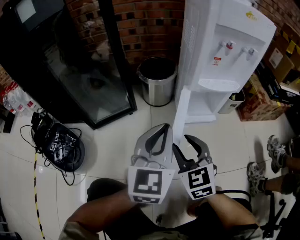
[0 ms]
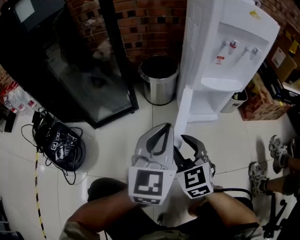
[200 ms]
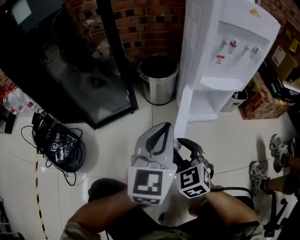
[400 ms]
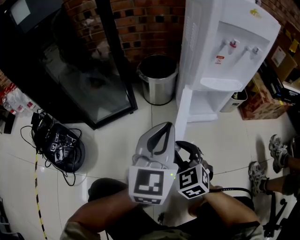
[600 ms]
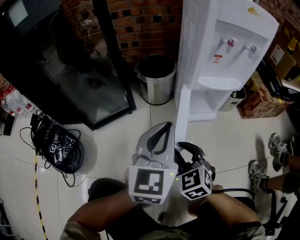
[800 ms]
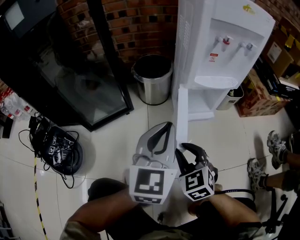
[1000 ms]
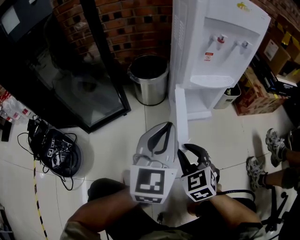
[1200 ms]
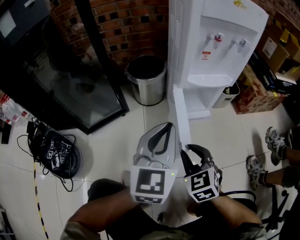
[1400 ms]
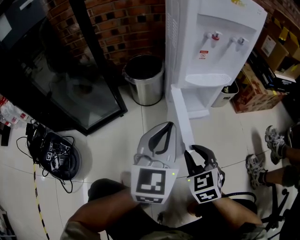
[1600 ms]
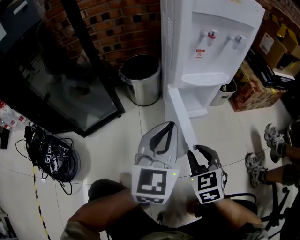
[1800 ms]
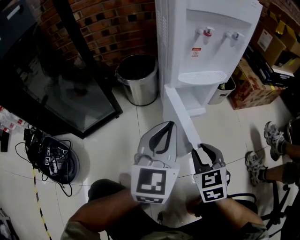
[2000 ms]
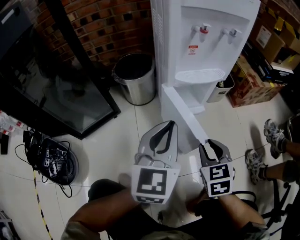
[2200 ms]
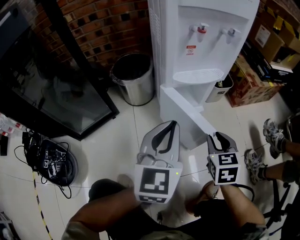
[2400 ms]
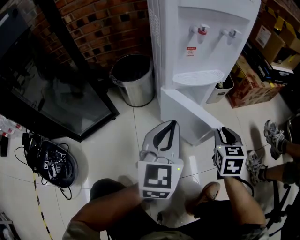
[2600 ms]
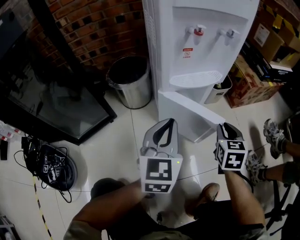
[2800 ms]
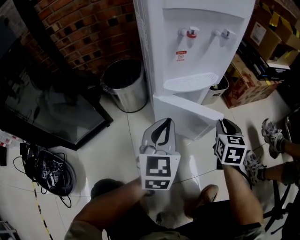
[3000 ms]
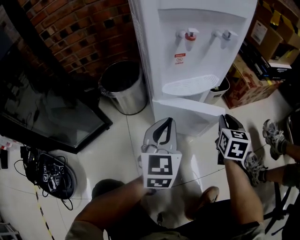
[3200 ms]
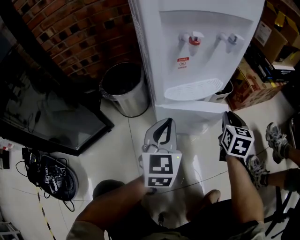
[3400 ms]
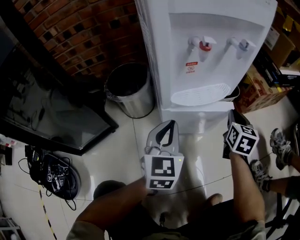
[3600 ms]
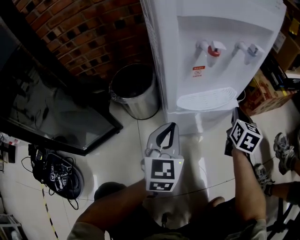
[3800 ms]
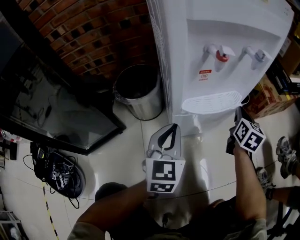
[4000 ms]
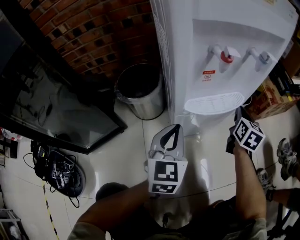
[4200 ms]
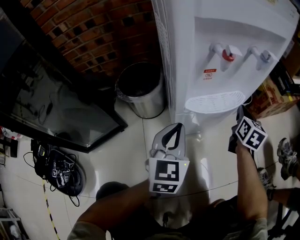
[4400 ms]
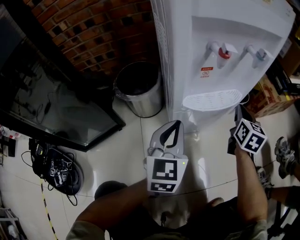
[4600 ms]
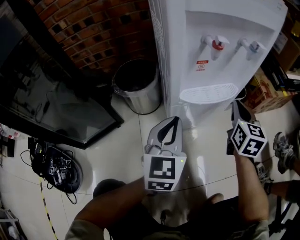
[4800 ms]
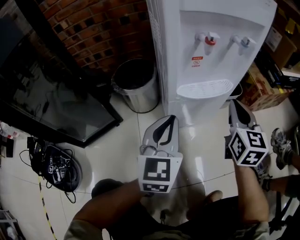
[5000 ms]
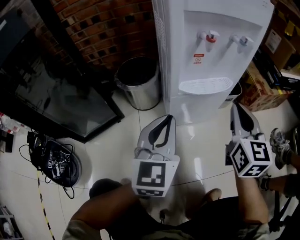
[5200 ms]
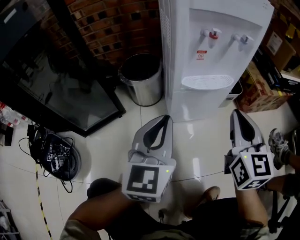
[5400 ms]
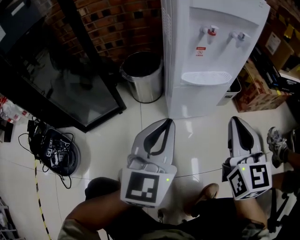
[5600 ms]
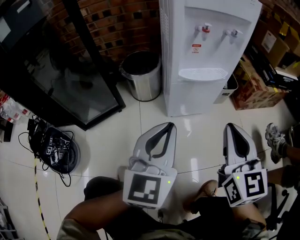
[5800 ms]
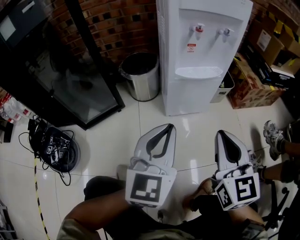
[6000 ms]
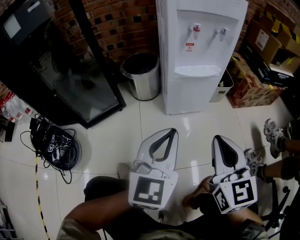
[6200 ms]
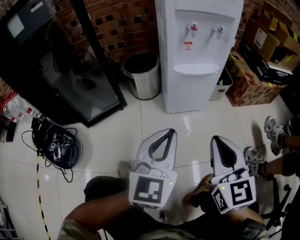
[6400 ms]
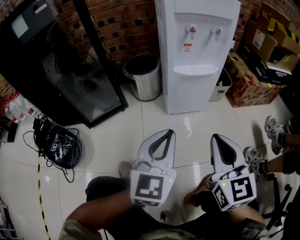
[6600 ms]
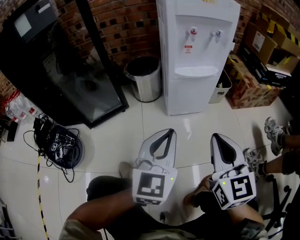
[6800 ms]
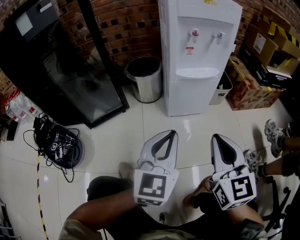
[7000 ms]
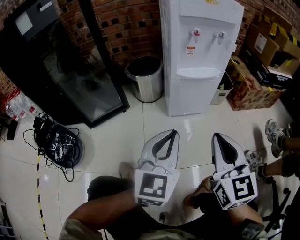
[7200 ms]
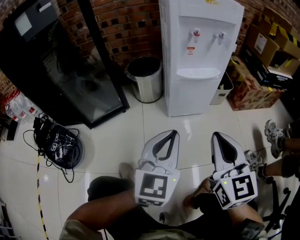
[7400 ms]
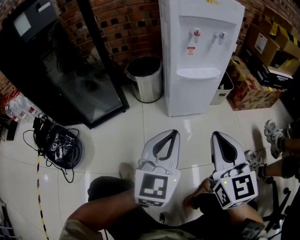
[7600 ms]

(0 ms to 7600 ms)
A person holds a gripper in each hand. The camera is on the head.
0 ms - 1600 ms: The two grippers go some 5 cm to the right.
1600 ms - 3000 ms: The right gripper shifts some 25 cm to the right and forward, and changes its angle by about 40 degrees; the left gripper shifts about 15 cm forward, downward and to the right.
3000 ms - 4600 ms: The left gripper goes some 5 cm forward. Meanwhile the right gripper is displaced forward by approximately 15 cm.
4600 ms - 6000 ms: The left gripper goes about 25 cm backward and upward; the right gripper is displaced backward and upward by about 35 cm, and changes its angle by about 30 degrees.
6000 ms - 7600 ms: The grippers move only a little.

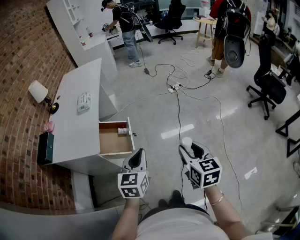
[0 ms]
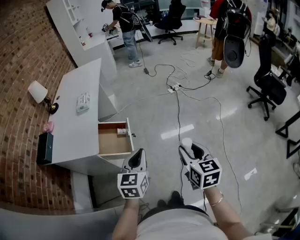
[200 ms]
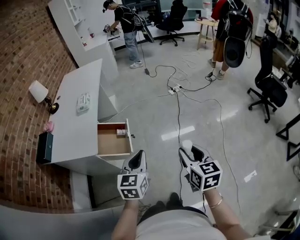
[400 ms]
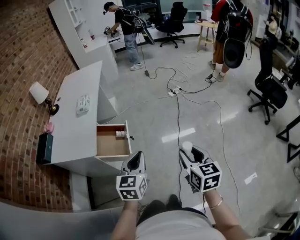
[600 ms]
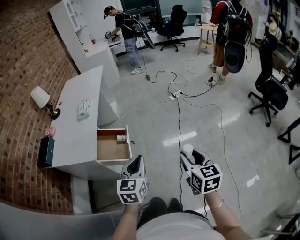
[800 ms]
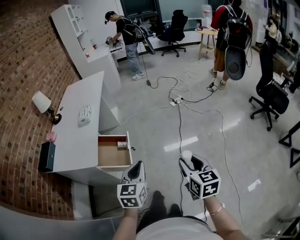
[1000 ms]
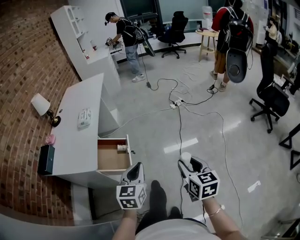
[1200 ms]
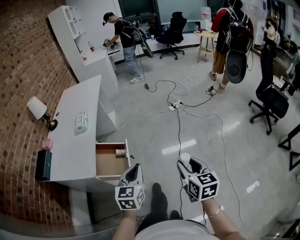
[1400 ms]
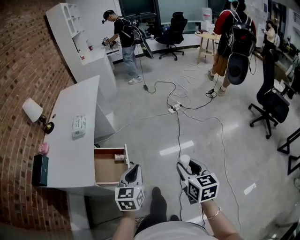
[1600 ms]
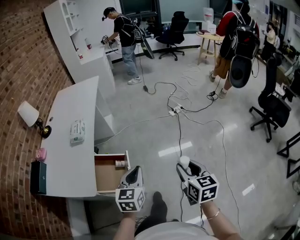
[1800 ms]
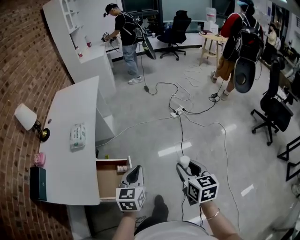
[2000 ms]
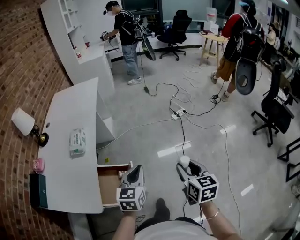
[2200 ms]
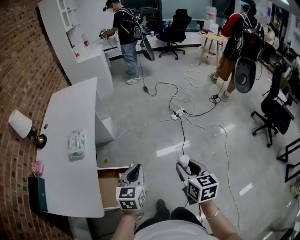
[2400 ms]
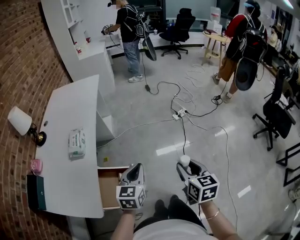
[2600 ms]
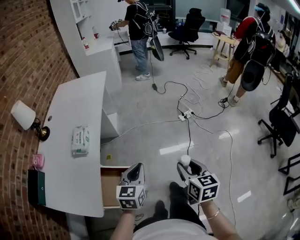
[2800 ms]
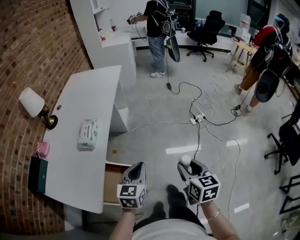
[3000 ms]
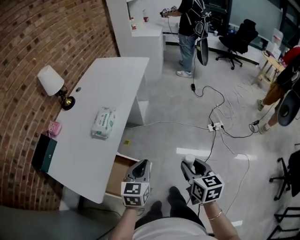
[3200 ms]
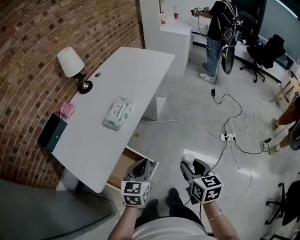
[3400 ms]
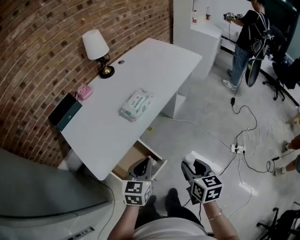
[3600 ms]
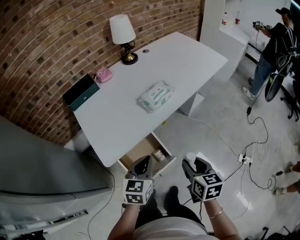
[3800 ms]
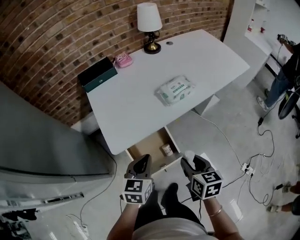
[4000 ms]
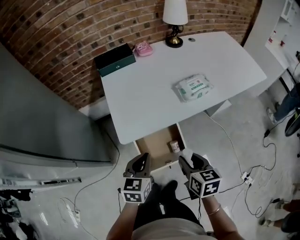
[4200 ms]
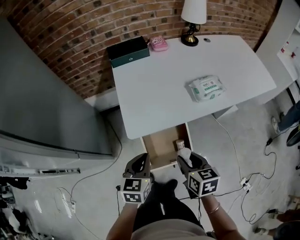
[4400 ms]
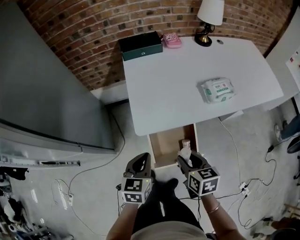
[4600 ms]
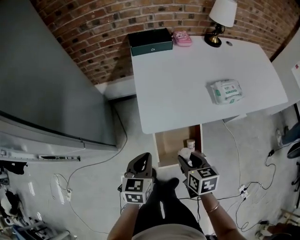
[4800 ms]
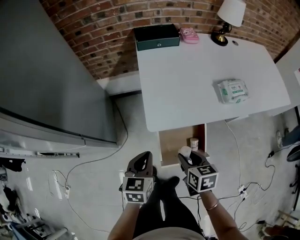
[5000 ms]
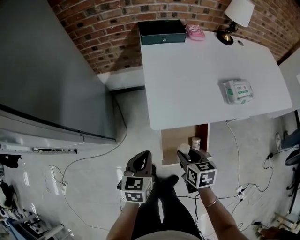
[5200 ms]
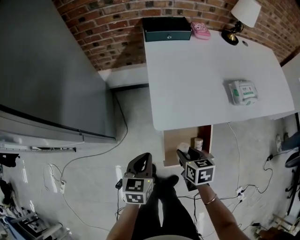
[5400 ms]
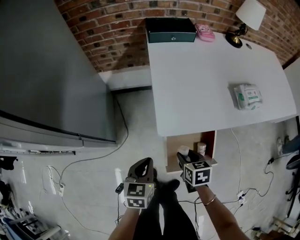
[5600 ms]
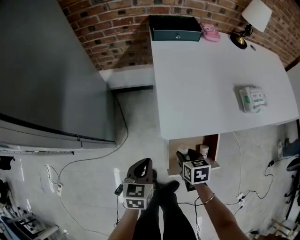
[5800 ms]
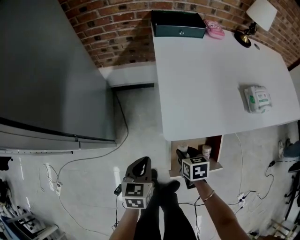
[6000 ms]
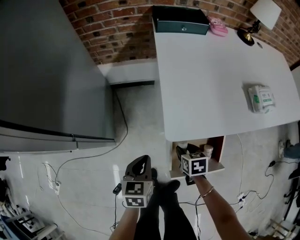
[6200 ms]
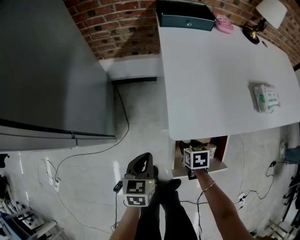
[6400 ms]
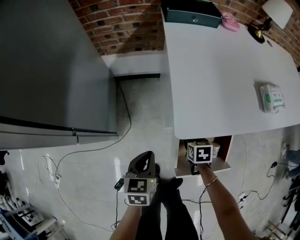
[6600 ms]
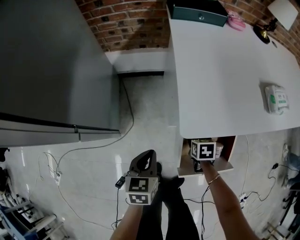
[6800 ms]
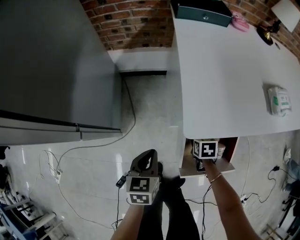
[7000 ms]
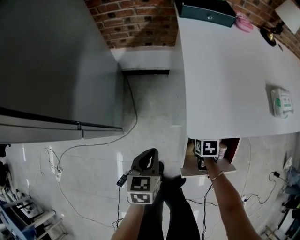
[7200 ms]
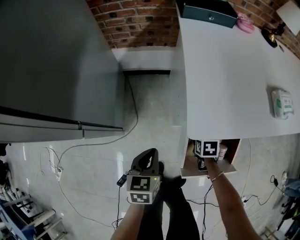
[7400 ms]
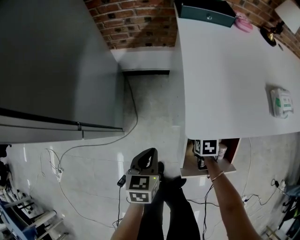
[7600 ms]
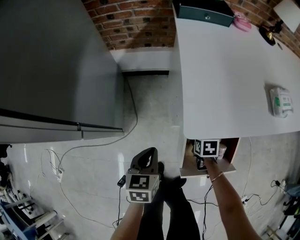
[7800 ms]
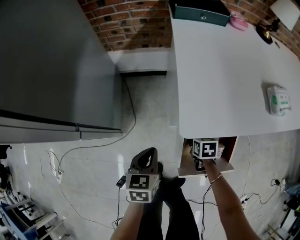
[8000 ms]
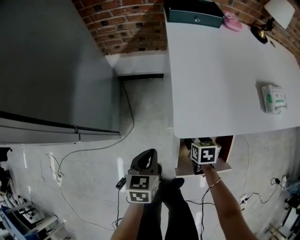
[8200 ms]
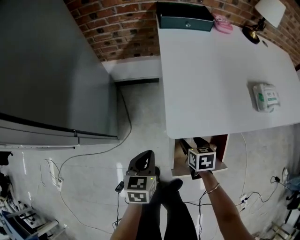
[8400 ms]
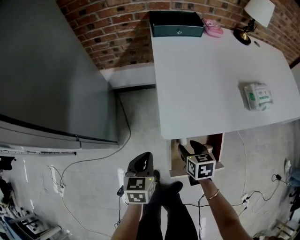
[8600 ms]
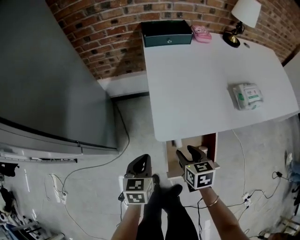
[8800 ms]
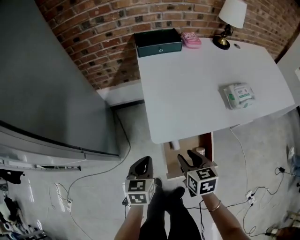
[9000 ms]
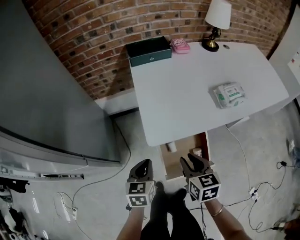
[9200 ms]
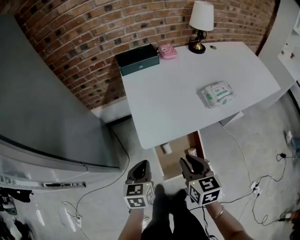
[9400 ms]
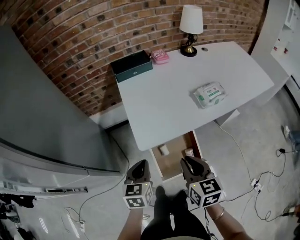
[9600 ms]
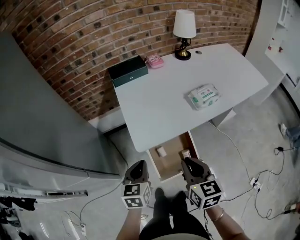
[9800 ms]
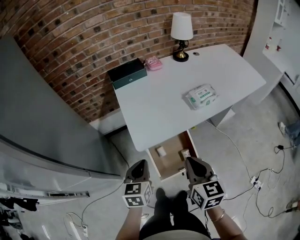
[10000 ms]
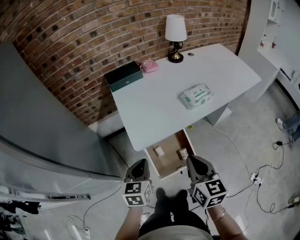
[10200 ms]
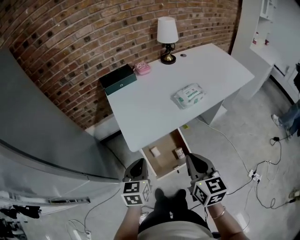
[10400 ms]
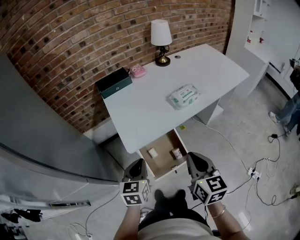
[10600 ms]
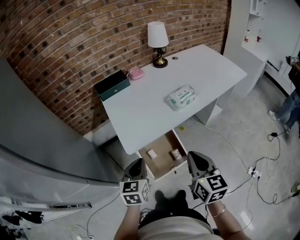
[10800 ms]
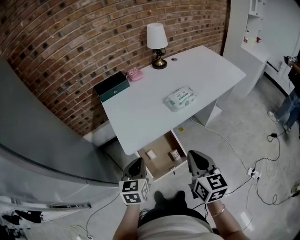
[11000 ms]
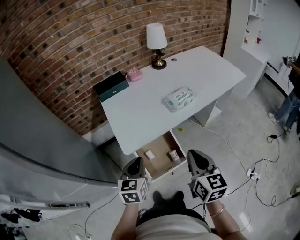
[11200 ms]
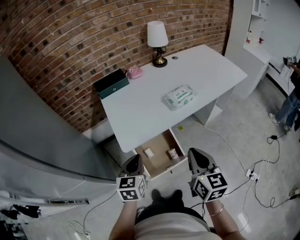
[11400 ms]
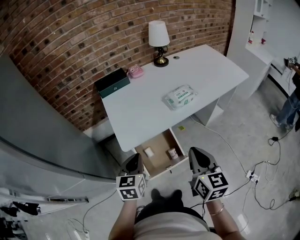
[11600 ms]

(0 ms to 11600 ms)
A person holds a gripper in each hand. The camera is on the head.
0 ms - 1400 ms: The grippers both shift forward by roughly 10 cm.
1400 ms - 2800 ms: The grippers both shift forward by roughly 35 cm.
2800 ms - 4400 ms: The left gripper ends up roughly 30 cm from where it was, and turns by roughly 80 degrees, while the right gripper changes place by roughly 35 cm, and turns by about 80 degrees.
4400 ms - 5800 ms: The left gripper heads downward and to the left, covering approximately 25 cm. The right gripper goes some 30 cm downward, to the left and forward.
5800 ms - 7200 ms: The left gripper travels downward by some 10 cm. Meanwhile the right gripper goes about 15 cm downward and forward.
7200 ms - 8800 ms: The left gripper travels upward and to the right by roughly 10 cm. Meanwhile the right gripper heads upward, covering approximately 20 cm, and changes its angle by some 20 degrees.
8800 ms - 10200 ms: The left gripper goes some 25 cm upward and to the right, while the right gripper shifts roughly 35 cm upward, backward and to the right, swivels about 30 degrees, and closes up.
10200 ms - 11600 ms: The right gripper moves to the right, some 10 cm, while the left gripper travels to the right by some 5 cm.

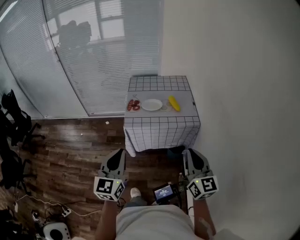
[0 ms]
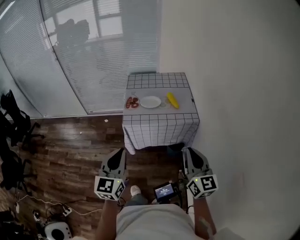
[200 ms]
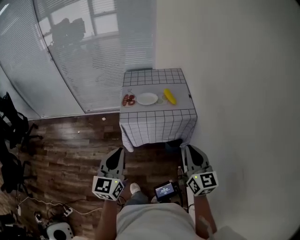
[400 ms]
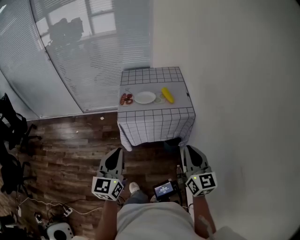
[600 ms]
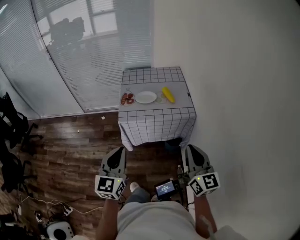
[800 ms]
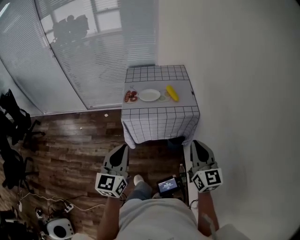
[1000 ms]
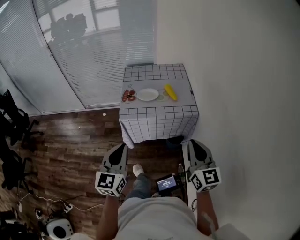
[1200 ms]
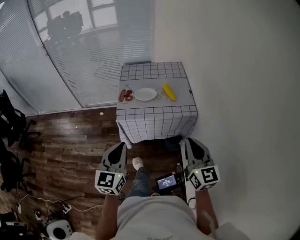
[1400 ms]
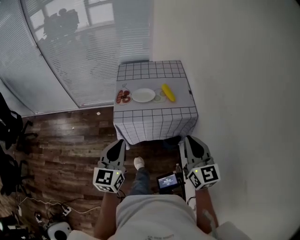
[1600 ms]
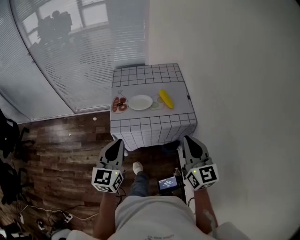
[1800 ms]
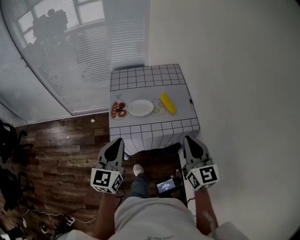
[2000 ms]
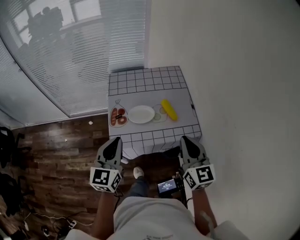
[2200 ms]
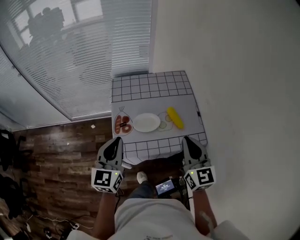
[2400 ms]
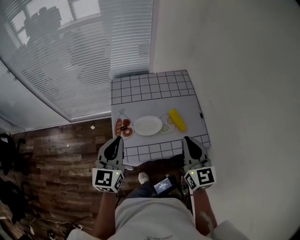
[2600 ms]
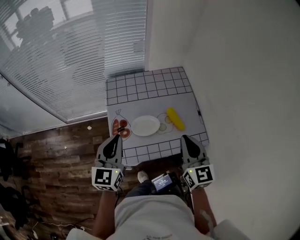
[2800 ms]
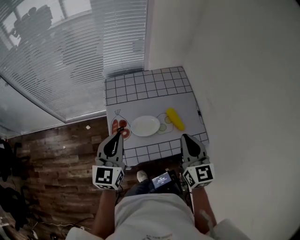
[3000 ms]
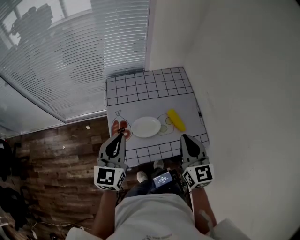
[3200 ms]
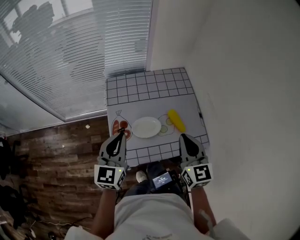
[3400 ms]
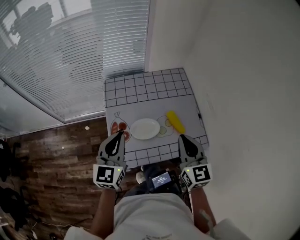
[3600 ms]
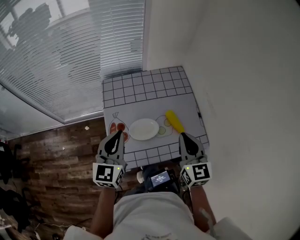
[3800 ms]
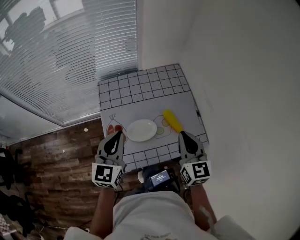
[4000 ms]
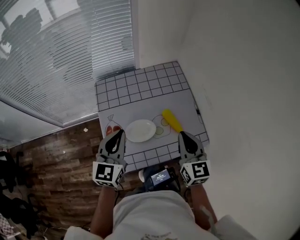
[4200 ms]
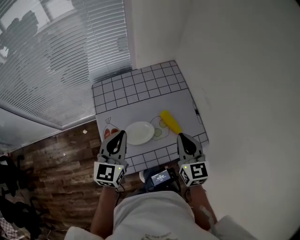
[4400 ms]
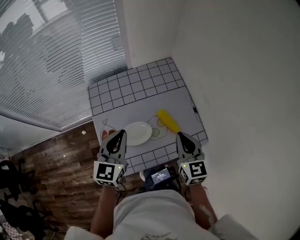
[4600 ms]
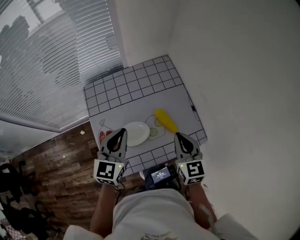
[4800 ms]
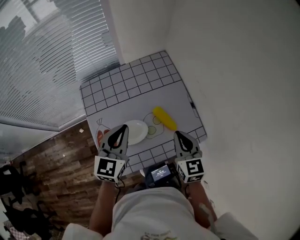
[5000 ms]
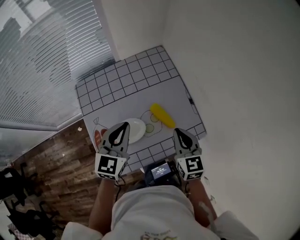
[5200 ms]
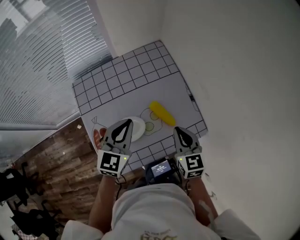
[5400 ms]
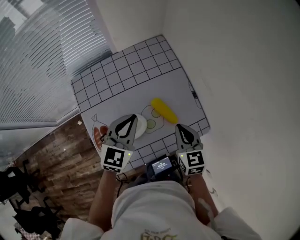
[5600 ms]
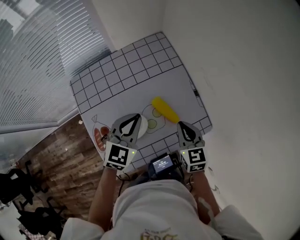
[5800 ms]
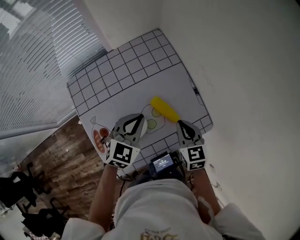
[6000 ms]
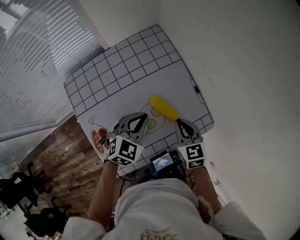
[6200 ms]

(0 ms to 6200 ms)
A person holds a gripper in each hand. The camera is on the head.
0 ms - 1600 ms: Both grippers travel together forward, some 10 cm.
1600 ms - 3200 ms: Both grippers move forward, approximately 30 cm.
3200 ms - 4600 ms: The right gripper moves downward and forward, approximately 10 cm; the left gripper shifts roughly 10 cm forward and to the right.
4600 ms - 6200 ms: The left gripper goes some 20 cm downward, to the right and forward, and swivels roughly 40 degrees; the right gripper shifts approximately 15 cm downward.
